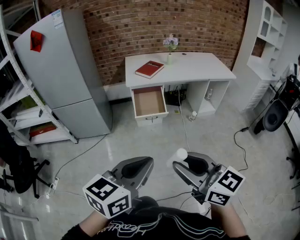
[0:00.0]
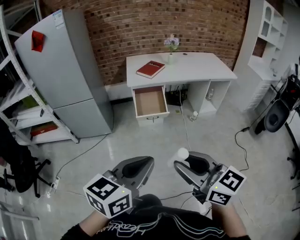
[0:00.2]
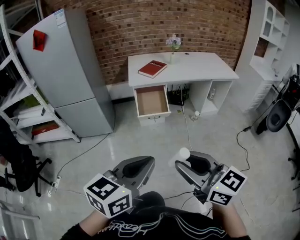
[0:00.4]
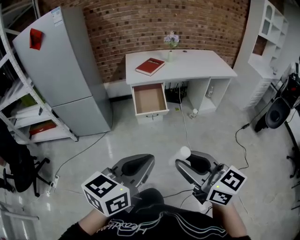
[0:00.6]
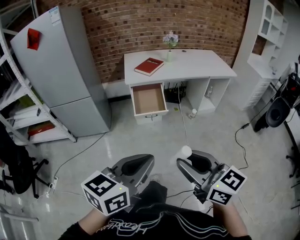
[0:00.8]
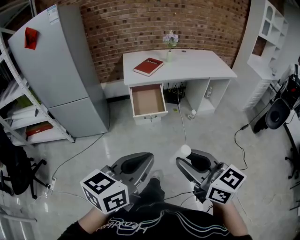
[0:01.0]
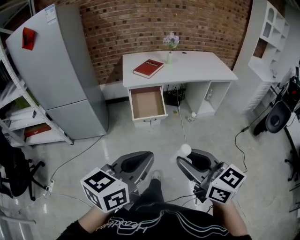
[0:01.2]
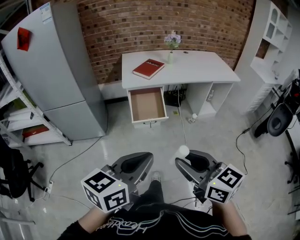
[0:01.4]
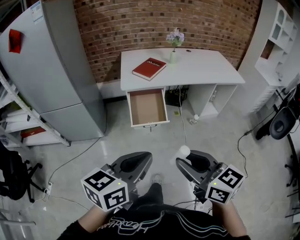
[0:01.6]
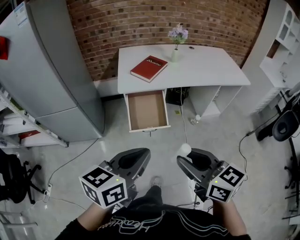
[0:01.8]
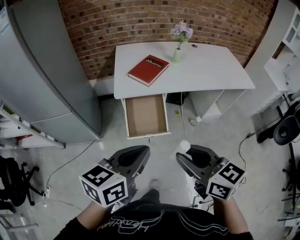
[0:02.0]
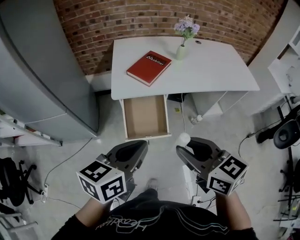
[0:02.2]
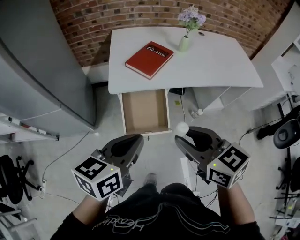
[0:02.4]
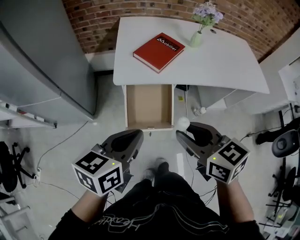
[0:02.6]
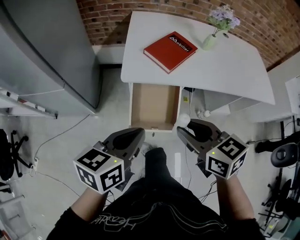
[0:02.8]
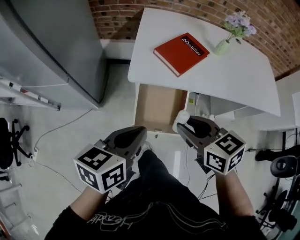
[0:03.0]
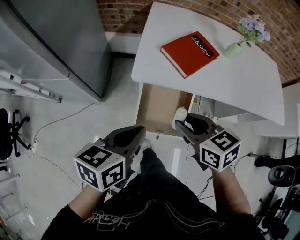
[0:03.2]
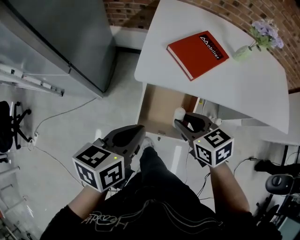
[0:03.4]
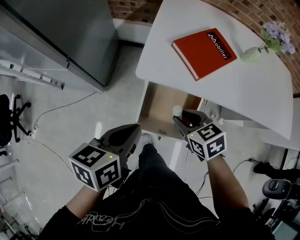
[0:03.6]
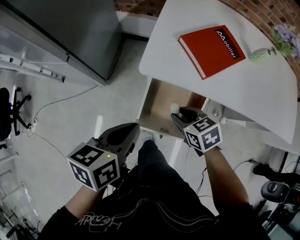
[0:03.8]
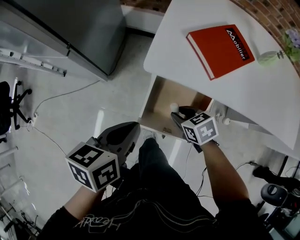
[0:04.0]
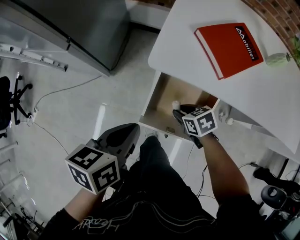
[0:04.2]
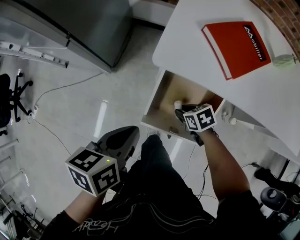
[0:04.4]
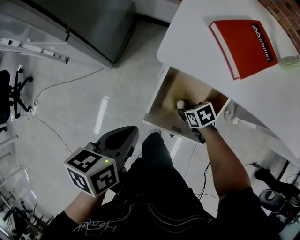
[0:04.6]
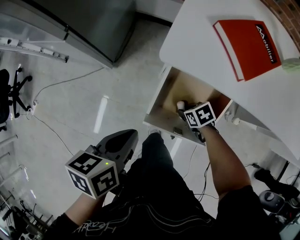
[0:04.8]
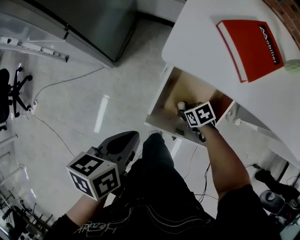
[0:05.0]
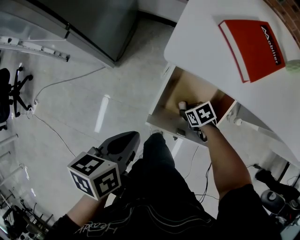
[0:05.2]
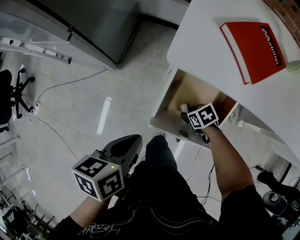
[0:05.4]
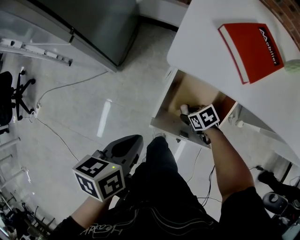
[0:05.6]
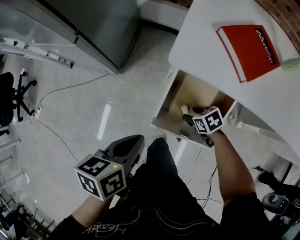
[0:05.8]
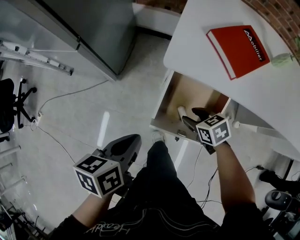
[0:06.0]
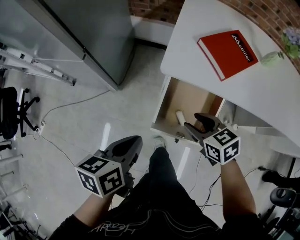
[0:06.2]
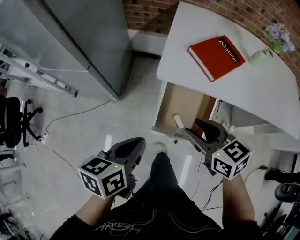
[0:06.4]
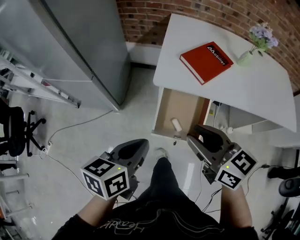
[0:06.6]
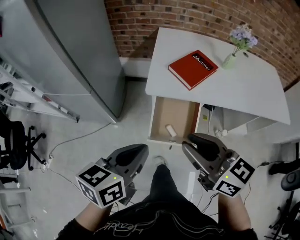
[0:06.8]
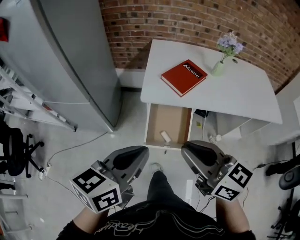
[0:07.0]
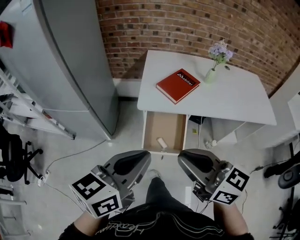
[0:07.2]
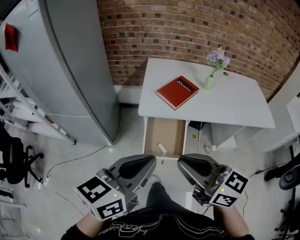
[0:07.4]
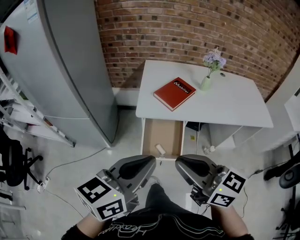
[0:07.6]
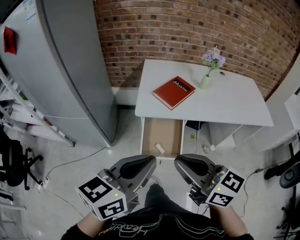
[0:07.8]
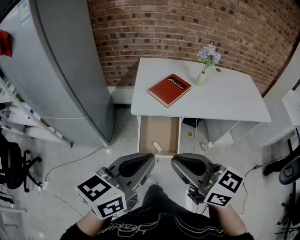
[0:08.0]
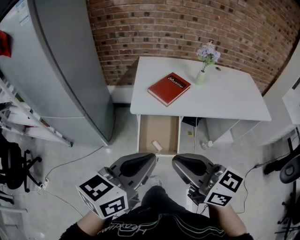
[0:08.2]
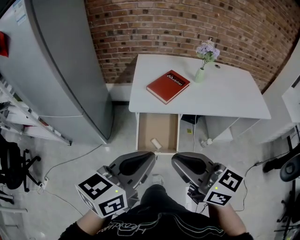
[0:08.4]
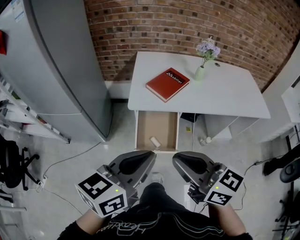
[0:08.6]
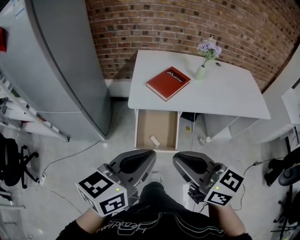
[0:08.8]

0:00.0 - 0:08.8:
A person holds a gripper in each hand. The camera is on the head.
0:00.0 - 0:01.4: The left gripper travels forward by about 10 cm. Meanwhile the right gripper goes approximately 15 cm forward and downward.
0:01.4 - 0:03.0: The two grippers travel together, forward, approximately 50 cm. The right gripper changes its angle by approximately 30 degrees, while the left gripper swivels some 20 degrees.
0:03.0 - 0:04.4: The right gripper is displaced downward by some 40 cm, and rotates approximately 40 degrees. Meanwhile the left gripper travels downward by roughly 15 cm, and rotates about 30 degrees.
0:04.4 - 0:05.8: The left gripper moves roughly 5 cm.
0:05.8 - 0:07.4: The right gripper heads upward, covering about 60 cm, tilts its fingers some 60 degrees upward, and closes, while the left gripper shifts about 40 cm upward, and points its fingers some 30 degrees further upward.
0:07.4 - 0:08.8: There are only small adjustments of the grippers.

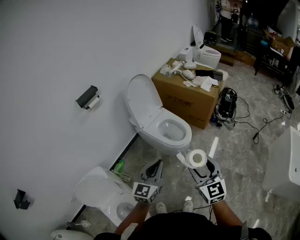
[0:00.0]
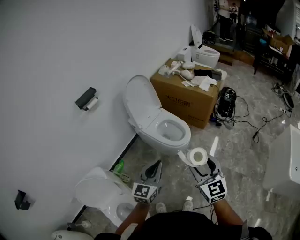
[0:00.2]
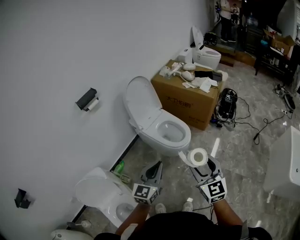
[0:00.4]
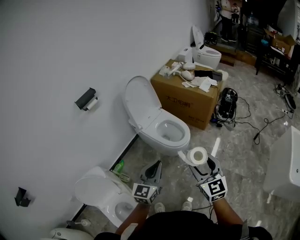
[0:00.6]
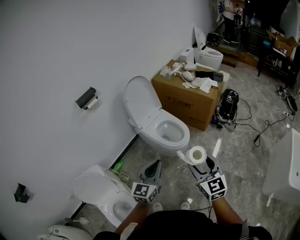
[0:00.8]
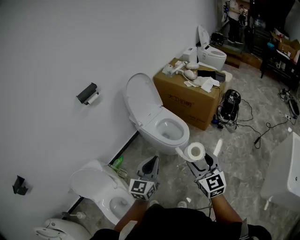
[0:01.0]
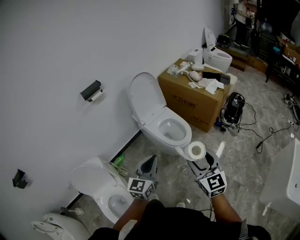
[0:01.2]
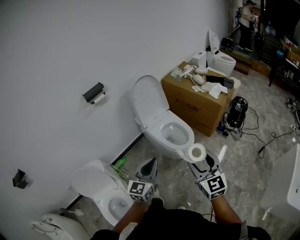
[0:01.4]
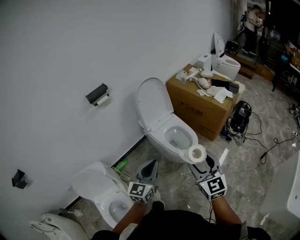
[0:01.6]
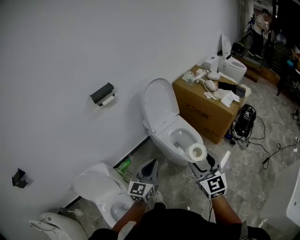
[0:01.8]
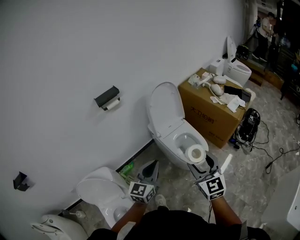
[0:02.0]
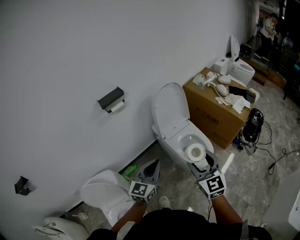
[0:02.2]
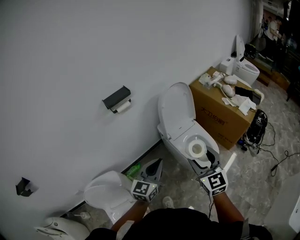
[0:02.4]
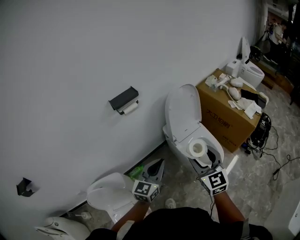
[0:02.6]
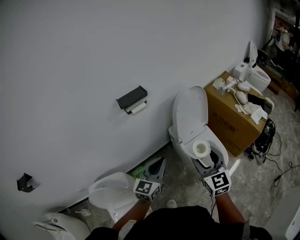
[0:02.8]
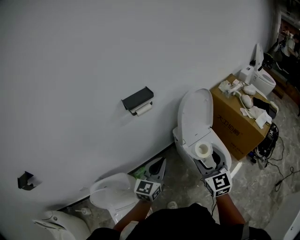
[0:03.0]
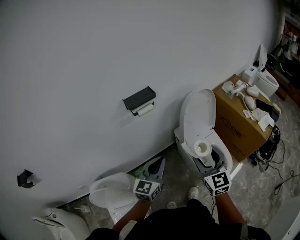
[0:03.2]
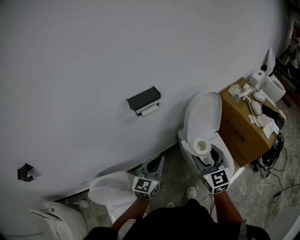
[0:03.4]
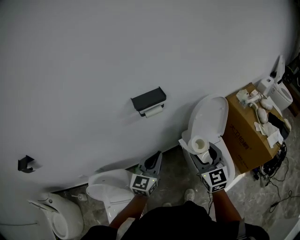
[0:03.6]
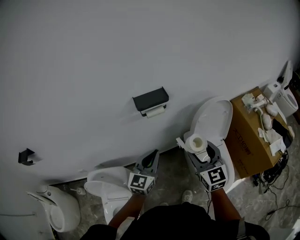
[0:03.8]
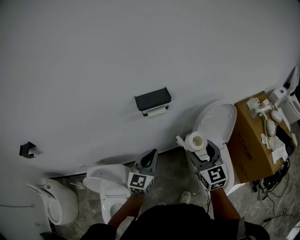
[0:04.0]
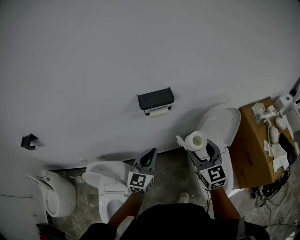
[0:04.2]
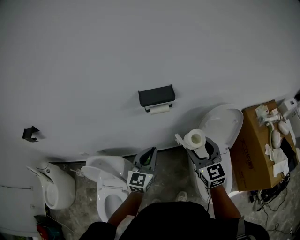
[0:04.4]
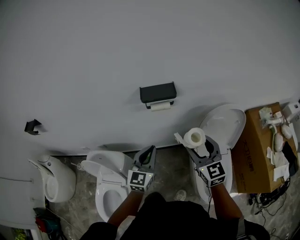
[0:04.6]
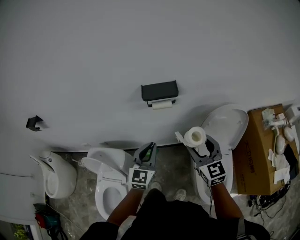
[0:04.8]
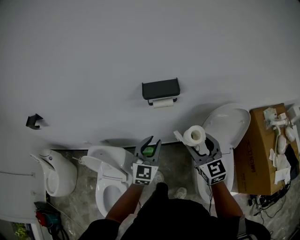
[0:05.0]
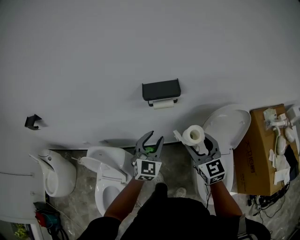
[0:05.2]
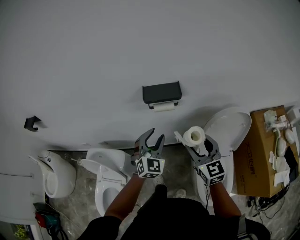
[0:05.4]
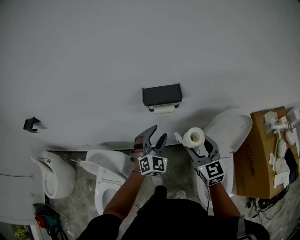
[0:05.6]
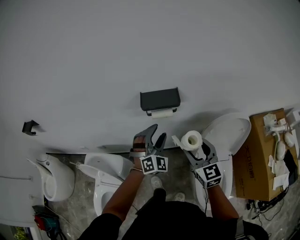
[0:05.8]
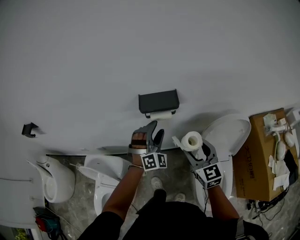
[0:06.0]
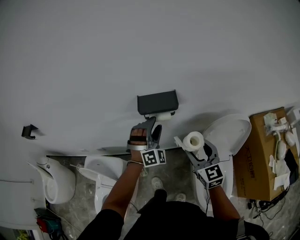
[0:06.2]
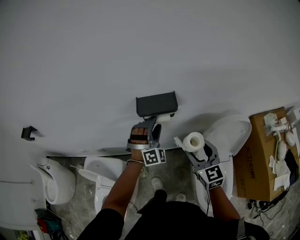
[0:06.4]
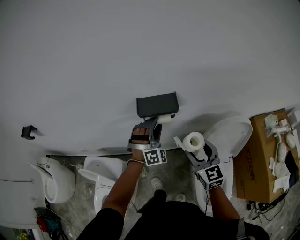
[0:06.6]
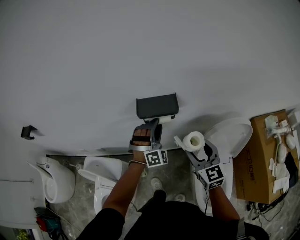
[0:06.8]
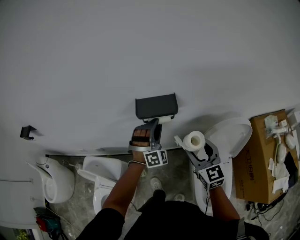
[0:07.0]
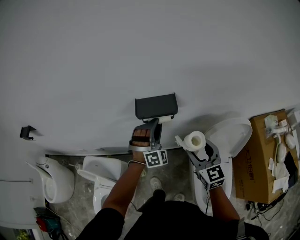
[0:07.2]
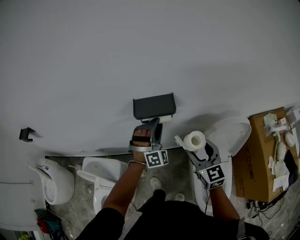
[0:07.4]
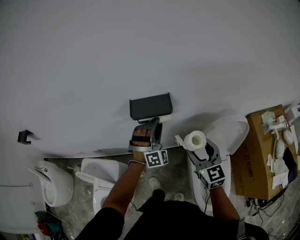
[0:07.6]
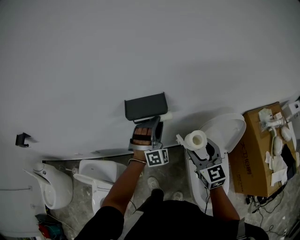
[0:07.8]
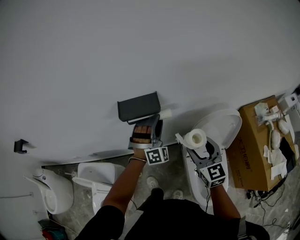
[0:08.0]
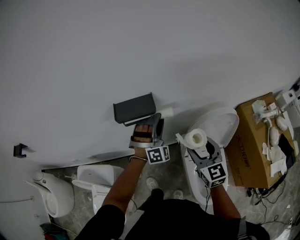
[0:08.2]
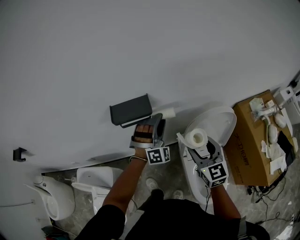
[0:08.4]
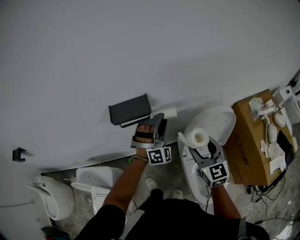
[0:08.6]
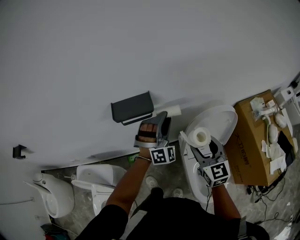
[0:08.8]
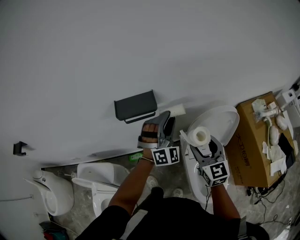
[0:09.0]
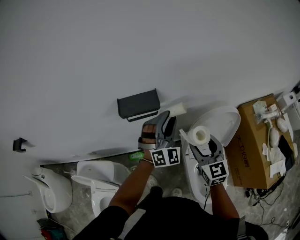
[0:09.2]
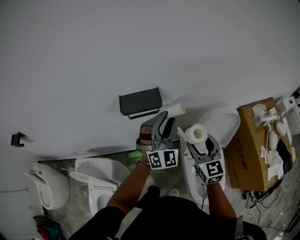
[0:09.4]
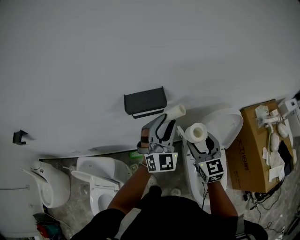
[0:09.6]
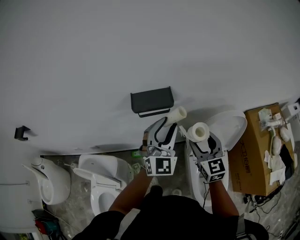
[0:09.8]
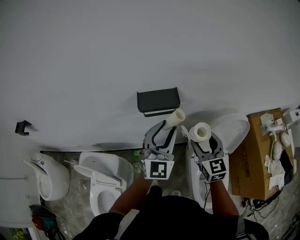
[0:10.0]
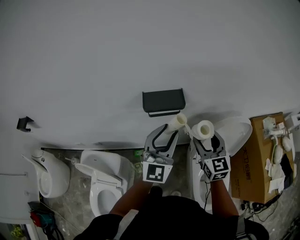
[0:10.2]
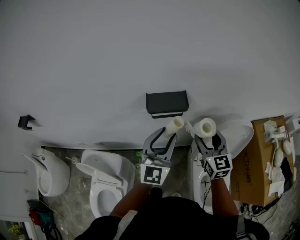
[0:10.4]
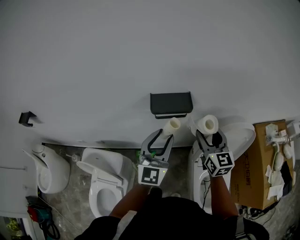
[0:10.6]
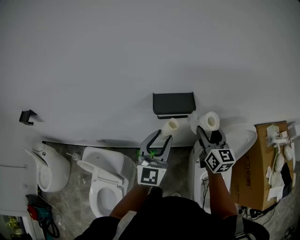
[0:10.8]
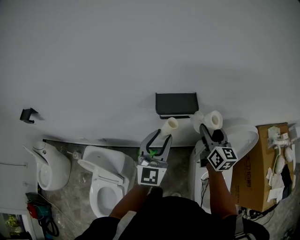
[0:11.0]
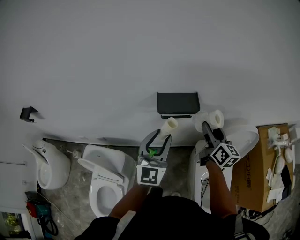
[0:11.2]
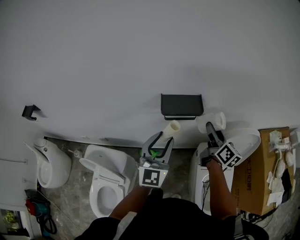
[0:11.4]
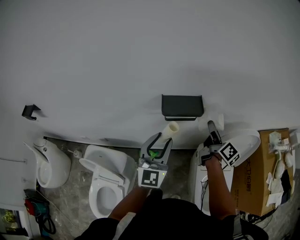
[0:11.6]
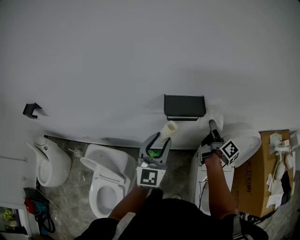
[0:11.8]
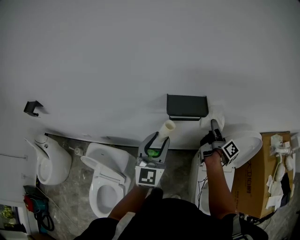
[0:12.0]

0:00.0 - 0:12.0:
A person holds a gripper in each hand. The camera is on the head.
0:00.0 - 0:01.6: The right gripper goes some 10 cm forward.
0:01.6 - 0:03.0: The left gripper goes approximately 30 cm to the left and forward, while the right gripper heads forward and to the left, covering some 35 cm.
0:03.0 - 0:04.4: The right gripper moves approximately 20 cm, and rotates roughly 30 degrees, while the left gripper shifts by some 15 cm, and changes its angle by some 30 degrees.
0:04.4 - 0:06.0: The right gripper heads forward, covering approximately 10 cm; the left gripper is displaced forward by roughly 15 cm, rotates around the line of its fingers by roughly 60 degrees, clockwise from behind, and opens up.
0:06.0 - 0:07.6: The left gripper changes place by about 5 cm.
0:07.6 - 0:09.0: The right gripper shifts about 5 cm to the right, while the left gripper is displaced to the right by roughly 10 cm.
0:09.0 - 0:10.4: The left gripper heads to the left, backward and upward, covering about 15 cm, and twists some 50 degrees counterclockwise, seen from behind; the right gripper shifts roughly 10 cm to the left and forward.
0:10.4 - 0:12.0: The left gripper shifts about 10 cm to the left, while the right gripper shifts some 10 cm forward and downward, and rolls clockwise, seen from behind, by roughly 80 degrees.

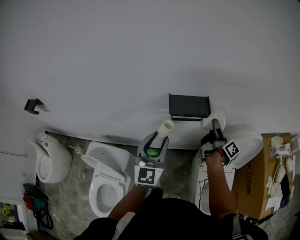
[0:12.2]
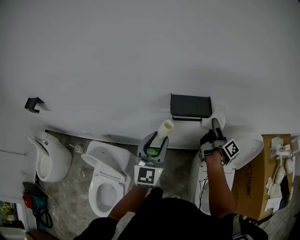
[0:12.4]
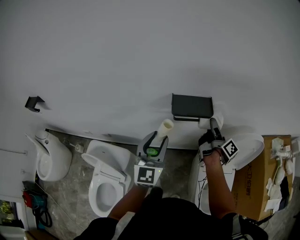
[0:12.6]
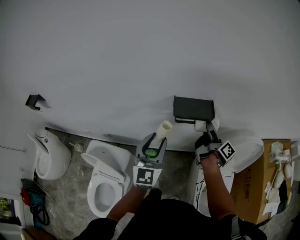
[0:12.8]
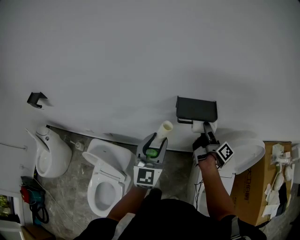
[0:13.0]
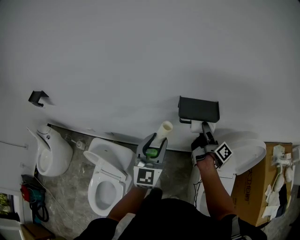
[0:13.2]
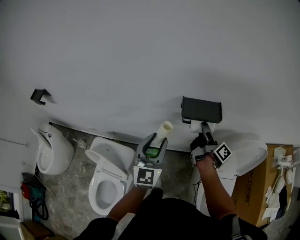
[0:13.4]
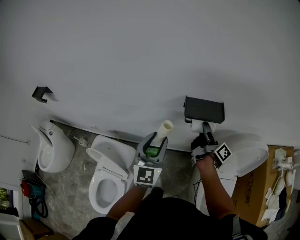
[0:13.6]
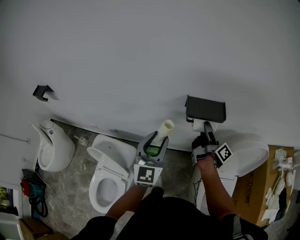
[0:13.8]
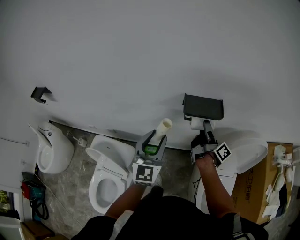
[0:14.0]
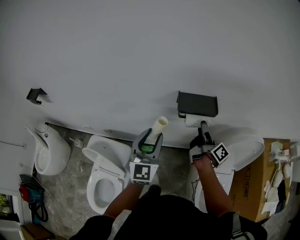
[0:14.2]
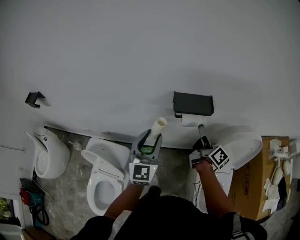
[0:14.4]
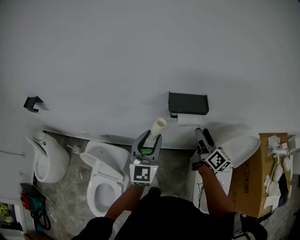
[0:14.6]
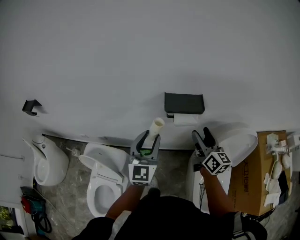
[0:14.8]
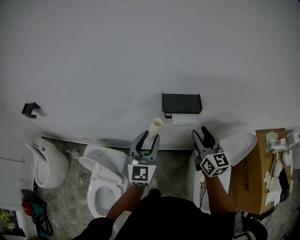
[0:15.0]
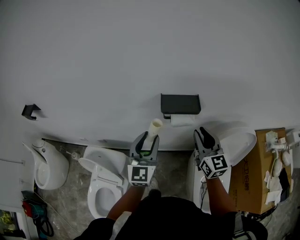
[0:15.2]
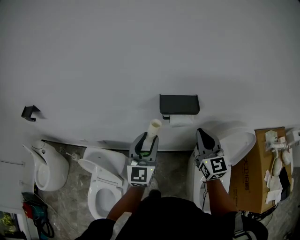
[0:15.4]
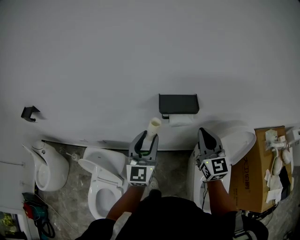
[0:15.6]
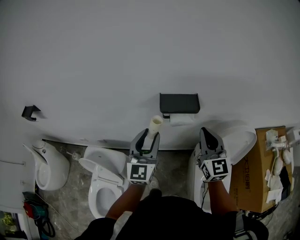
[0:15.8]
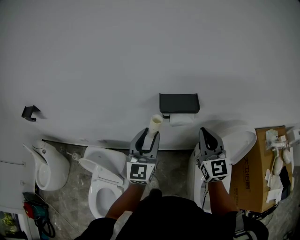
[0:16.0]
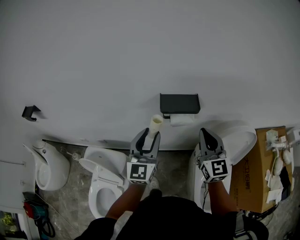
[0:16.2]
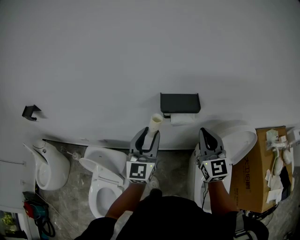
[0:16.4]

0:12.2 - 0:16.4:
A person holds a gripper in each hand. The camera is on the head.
0:12.2 - 0:13.6: The right gripper heads to the left, covering approximately 10 cm; the left gripper travels to the left by some 5 cm.
0:13.6 - 0:15.0: The right gripper goes approximately 10 cm backward and upward, and rotates around the line of its fingers by approximately 80 degrees, counterclockwise from behind.
0:15.0 - 0:16.4: The right gripper closes.
